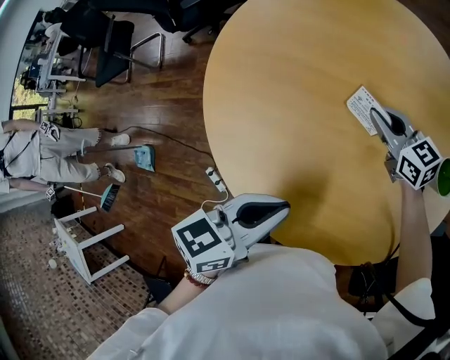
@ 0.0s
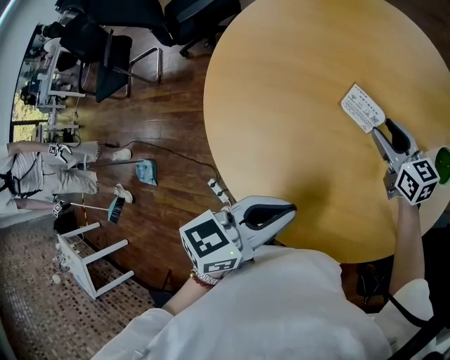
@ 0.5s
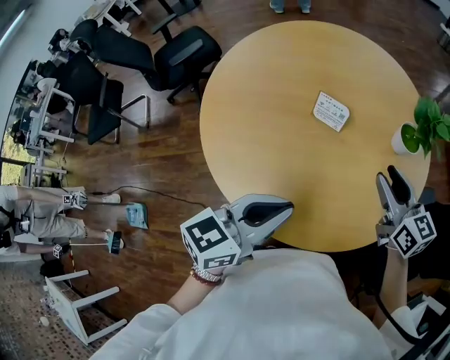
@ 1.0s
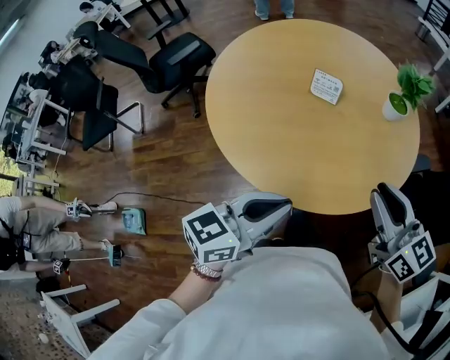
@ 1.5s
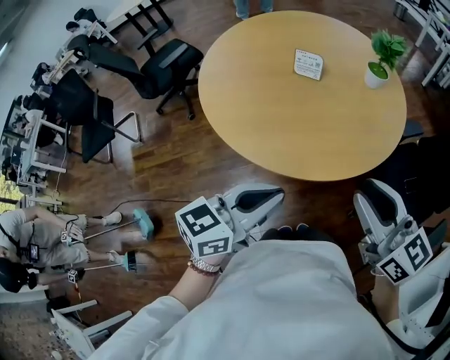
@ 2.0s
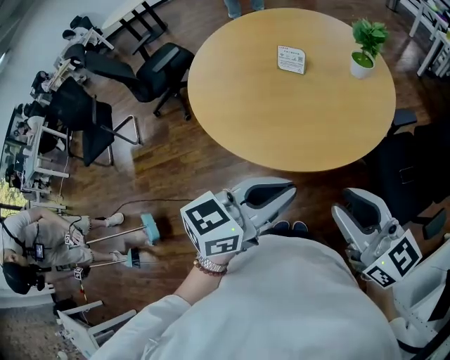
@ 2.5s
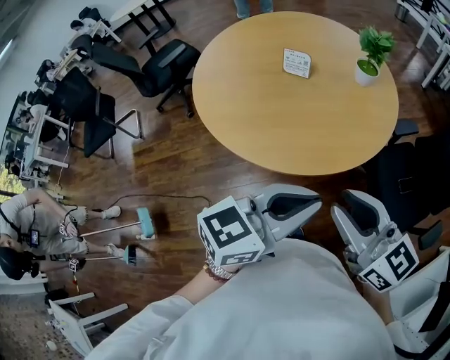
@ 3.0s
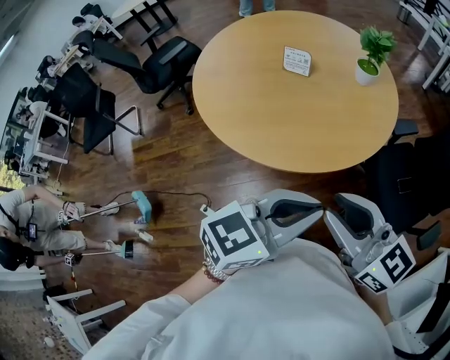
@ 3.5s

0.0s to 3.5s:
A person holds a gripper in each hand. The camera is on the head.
0.0s to 2.0s: The left gripper goes approximately 30 cm backward, and turns by about 30 degrees; the right gripper is displaced backward and upward by approximately 60 cm, changes its angle by some 30 degrees, and opens its fingers.
2.0s to 3.5s: The right gripper travels backward by some 5 cm. The left gripper moves to the right, approximately 15 cm.

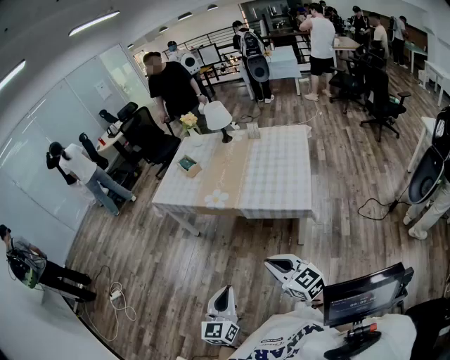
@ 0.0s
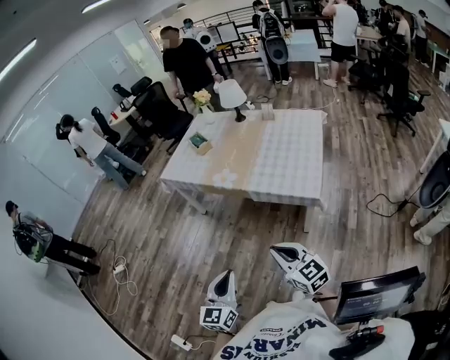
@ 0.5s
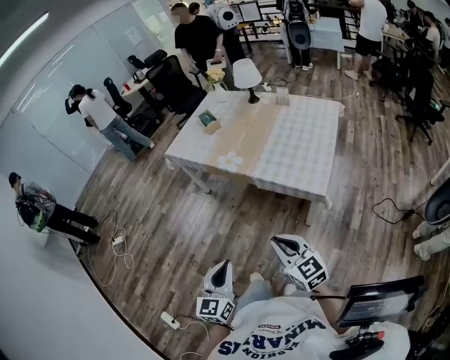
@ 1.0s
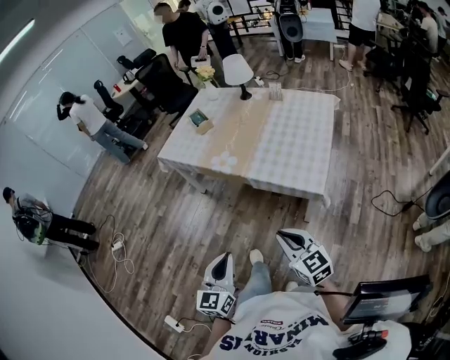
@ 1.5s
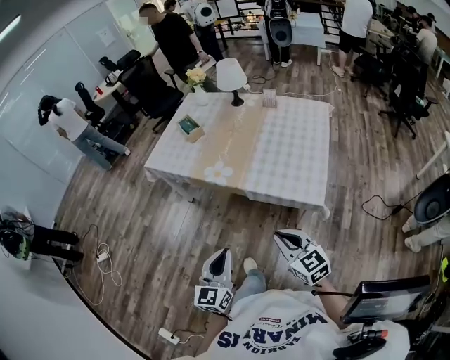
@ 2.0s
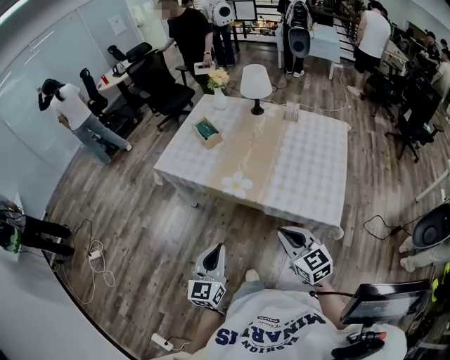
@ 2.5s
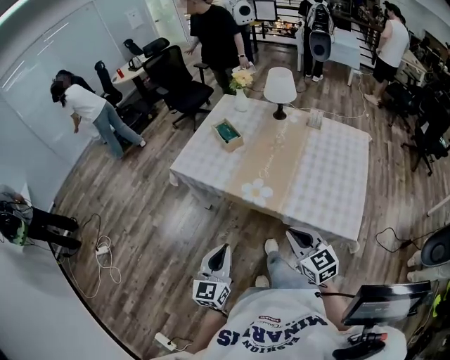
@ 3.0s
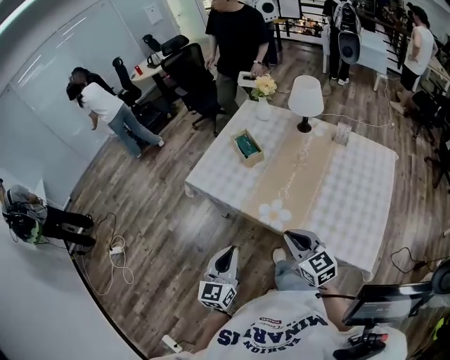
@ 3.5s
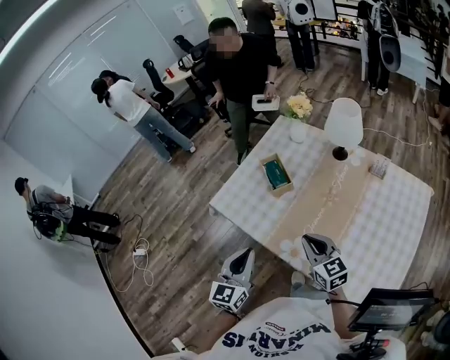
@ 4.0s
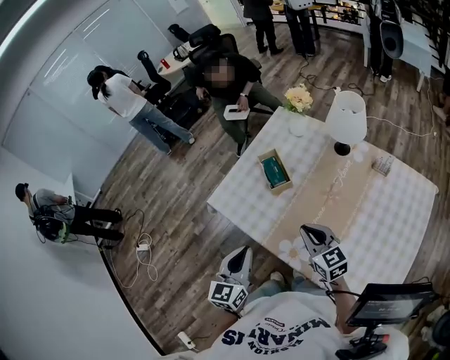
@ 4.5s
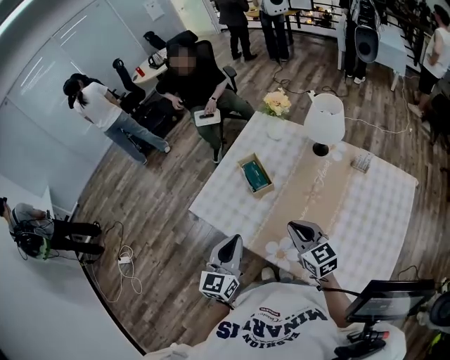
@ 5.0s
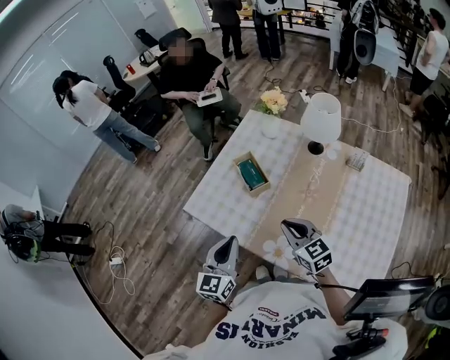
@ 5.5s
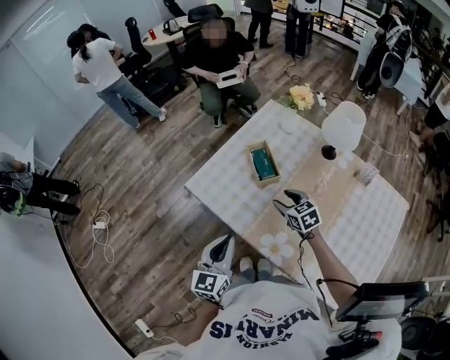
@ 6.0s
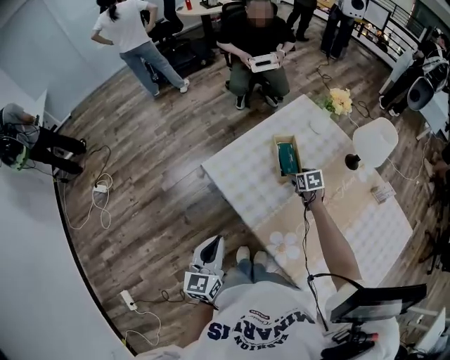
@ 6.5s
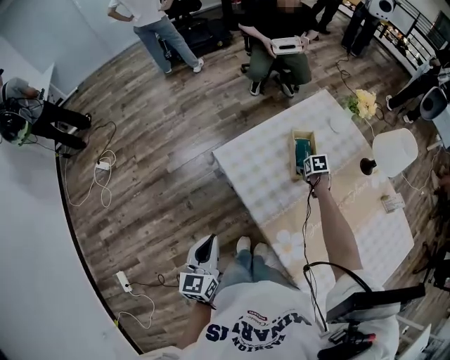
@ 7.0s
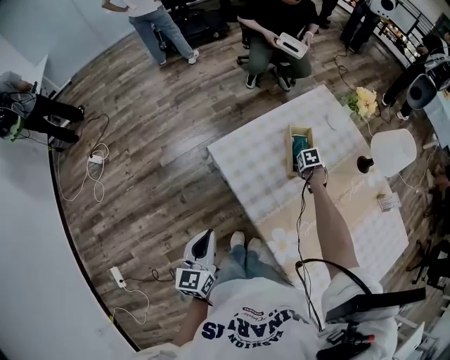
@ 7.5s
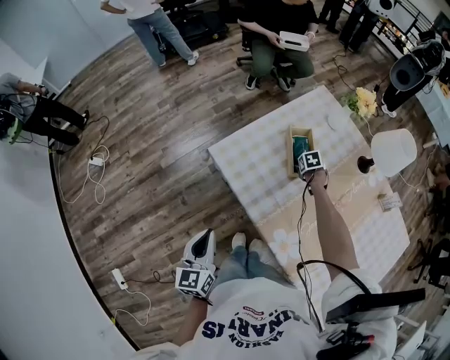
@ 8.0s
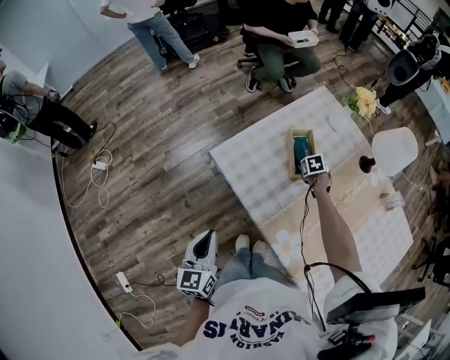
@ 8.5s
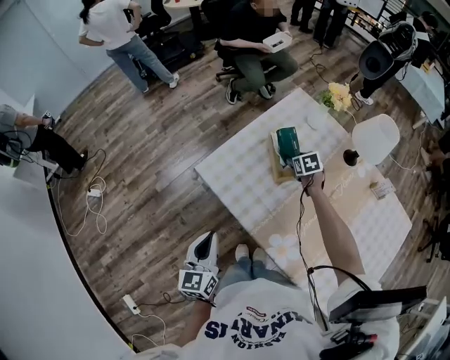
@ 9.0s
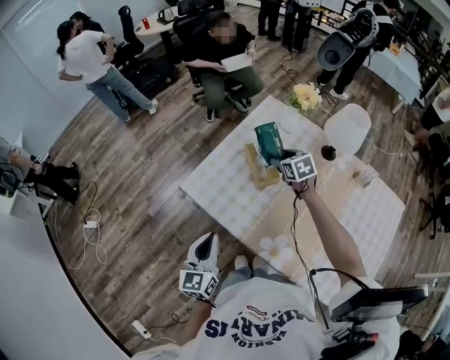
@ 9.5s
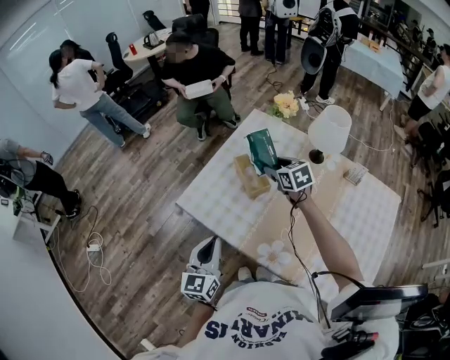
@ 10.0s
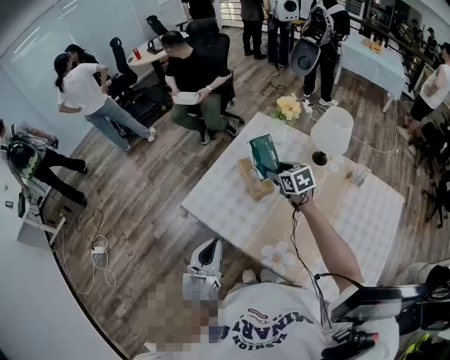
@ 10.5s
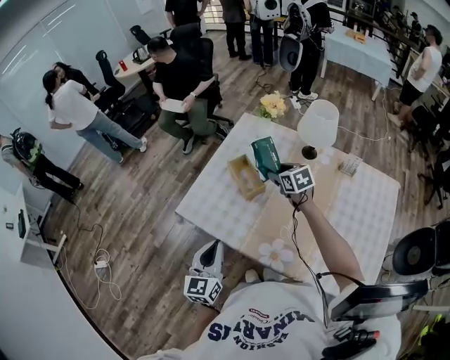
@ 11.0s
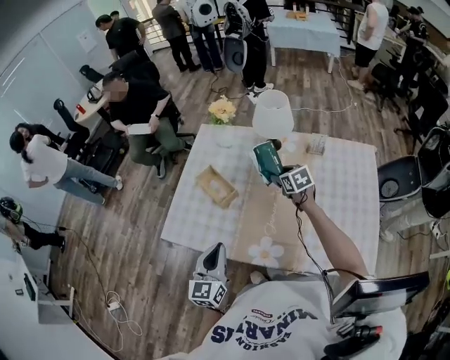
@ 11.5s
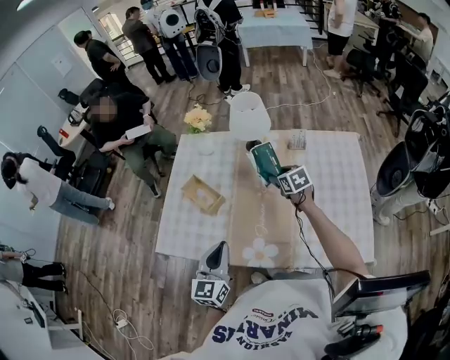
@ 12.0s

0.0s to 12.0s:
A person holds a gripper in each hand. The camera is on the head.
0.0s to 2.0s: The grippers both shift forward by roughly 15 cm.
2.0s to 4.0s: The two grippers travel together, forward, about 50 cm.
4.0s to 6.0s: The left gripper heads forward and to the left, covering about 10 cm; the right gripper shifts approximately 20 cm forward and downward, rotates roughly 20 degrees, and opens its fingers.
6.0s to 8.0s: The right gripper is displaced downward by some 20 cm, and tips its fingers downward by some 40 degrees. The left gripper changes place by some 15 cm, and rotates some 30 degrees.
8.0s to 10.0s: The left gripper travels to the right and upward by about 15 cm, and turns by roughly 30 degrees. The right gripper moves upward, some 30 cm, and points its fingers roughly 40 degrees further upward.
10.0s to 12.0s: The right gripper ends up approximately 30 cm from where it was, and changes its angle by about 30 degrees. The left gripper ends up approximately 15 cm from where it was, and changes its angle by approximately 30 degrees.

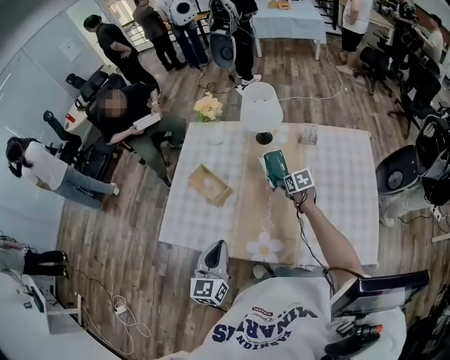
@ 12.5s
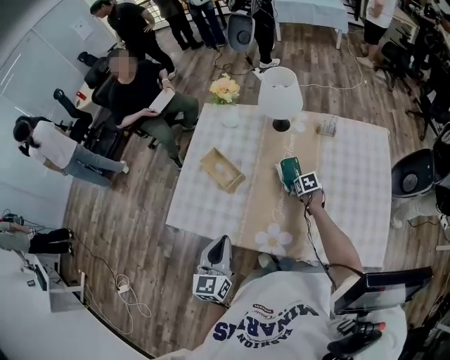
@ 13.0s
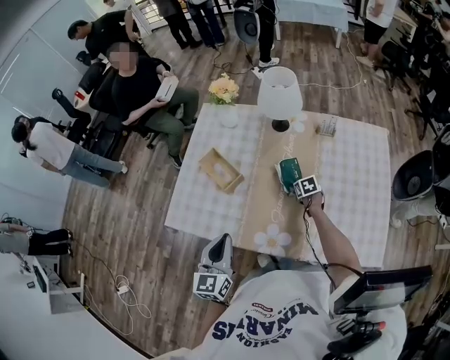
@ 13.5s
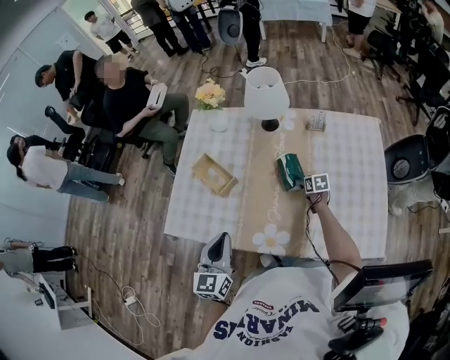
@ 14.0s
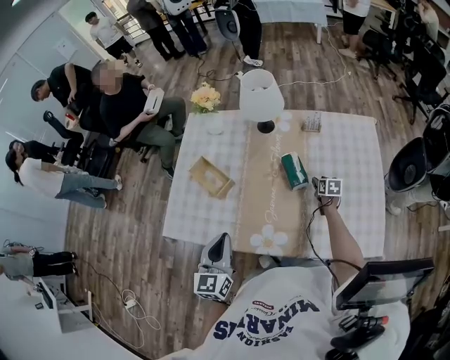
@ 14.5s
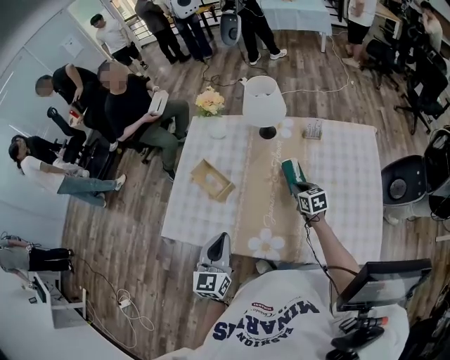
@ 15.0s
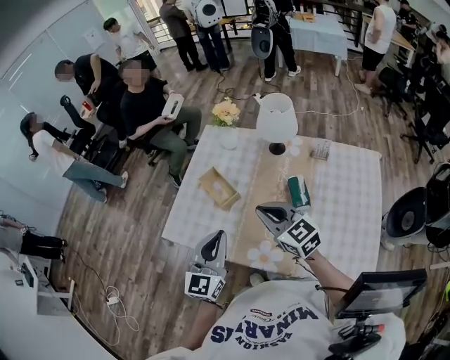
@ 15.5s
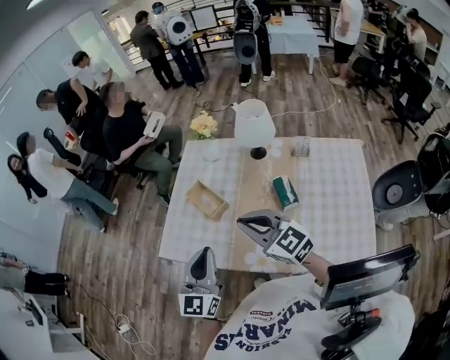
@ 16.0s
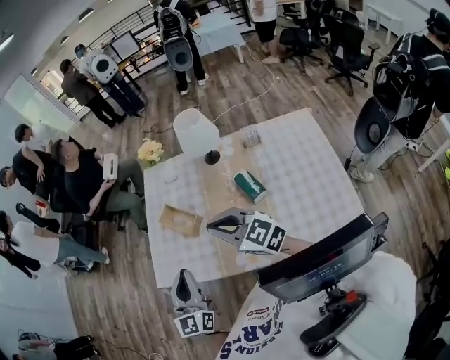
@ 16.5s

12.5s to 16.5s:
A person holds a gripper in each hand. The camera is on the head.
12.5s to 14.5s: The right gripper goes roughly 20 cm to the right and downward, and swivels about 20 degrees.
14.5s to 16.5s: The left gripper is displaced upward by approximately 10 cm, while the right gripper is displaced upward and to the left by roughly 50 cm, tilts its fingers roughly 40 degrees upward, and closes up.

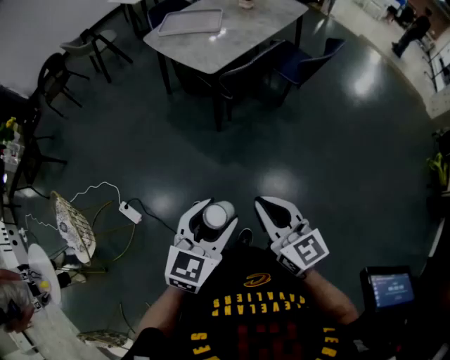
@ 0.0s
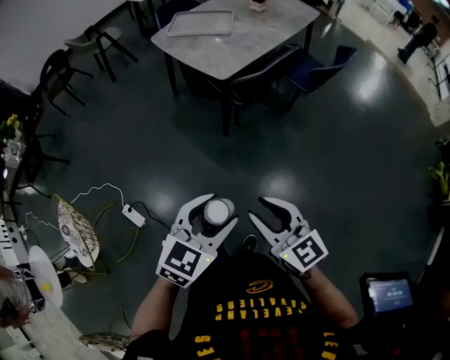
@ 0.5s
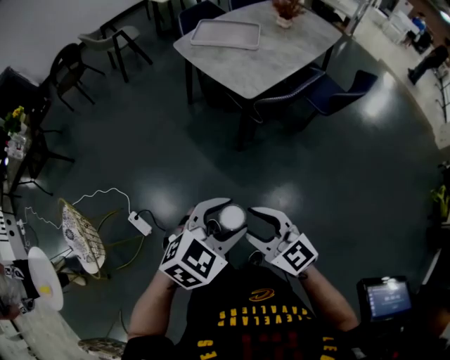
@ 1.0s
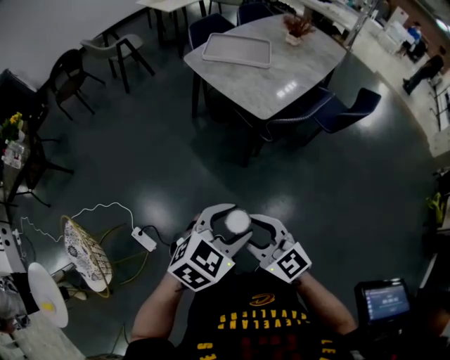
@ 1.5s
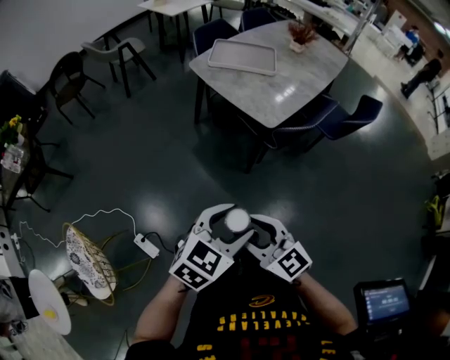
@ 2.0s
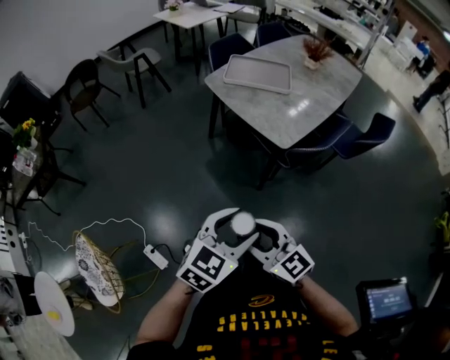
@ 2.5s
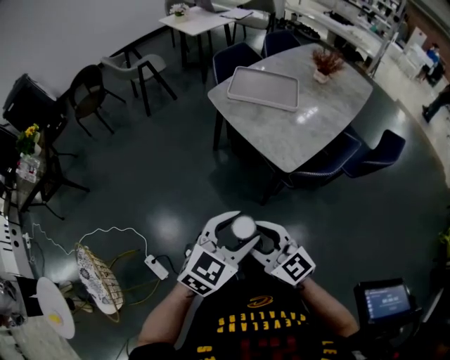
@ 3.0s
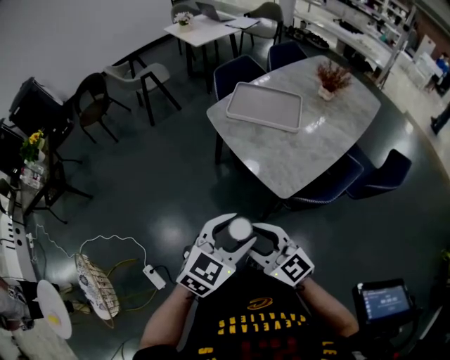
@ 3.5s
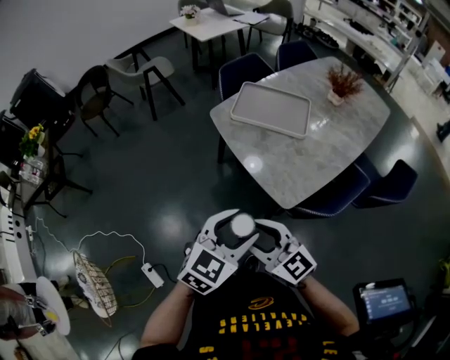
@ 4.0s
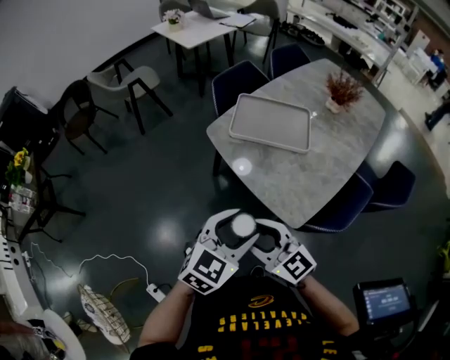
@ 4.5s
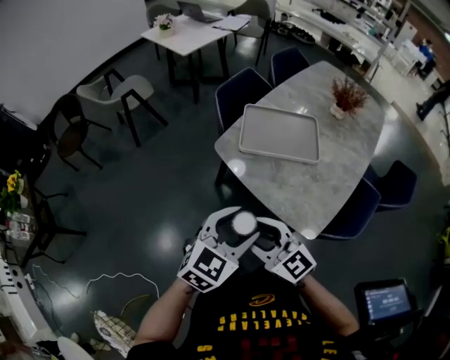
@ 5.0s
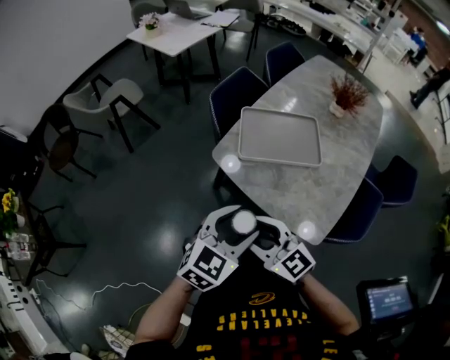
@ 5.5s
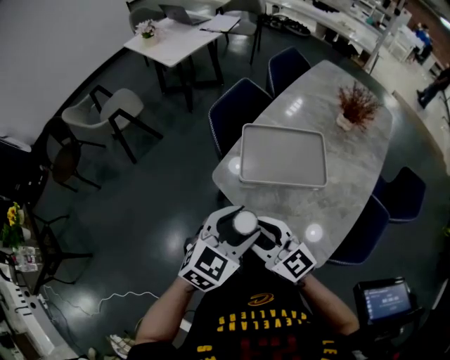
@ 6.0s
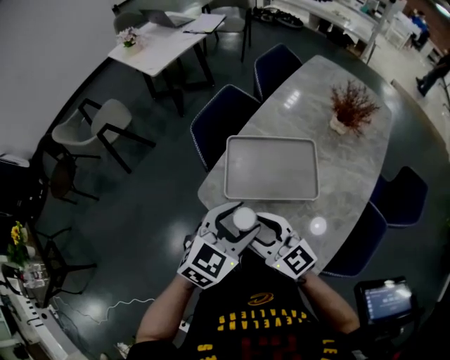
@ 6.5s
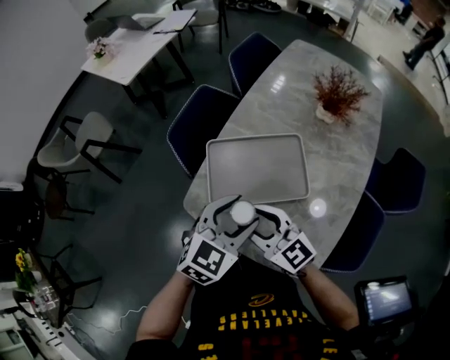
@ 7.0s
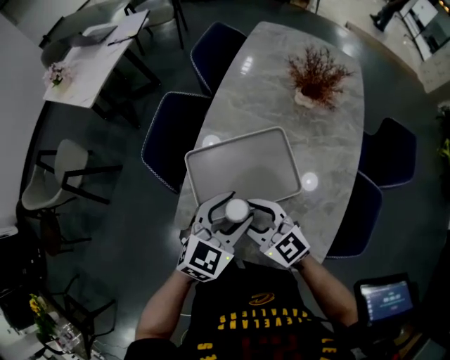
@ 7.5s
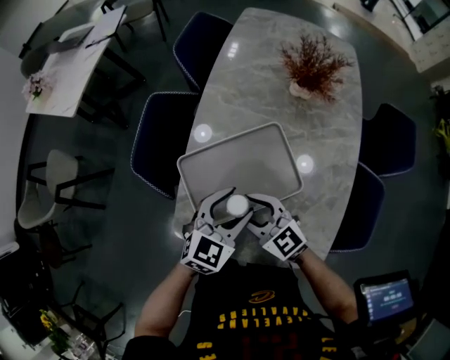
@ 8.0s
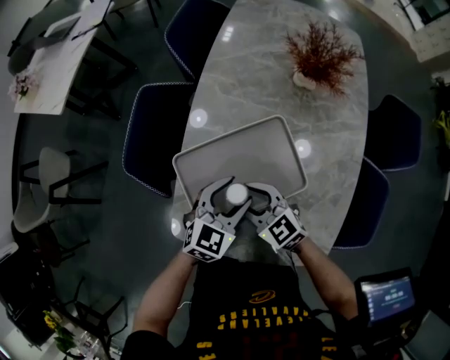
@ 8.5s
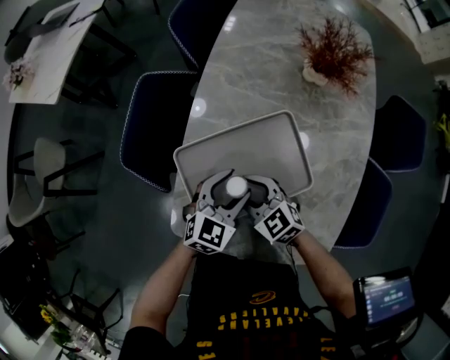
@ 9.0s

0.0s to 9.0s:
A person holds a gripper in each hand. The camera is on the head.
0.0s to 2.0s: The left gripper moves forward and to the left, some 30 cm, while the right gripper goes approximately 35 cm to the left and forward, rotates about 20 degrees, and opens up.
2.0s to 4.5s: Both grippers are carried forward, approximately 40 cm.
4.5s to 7.0s: The grippers both shift forward by approximately 35 cm.
7.0s to 9.0s: Both grippers move downward and forward, approximately 20 cm. The right gripper turns by approximately 30 degrees.
